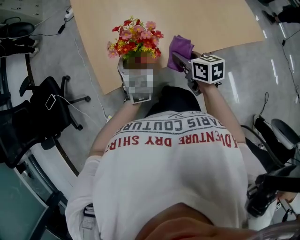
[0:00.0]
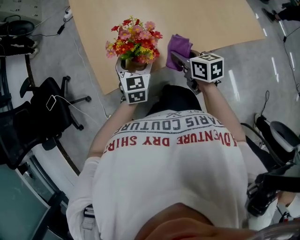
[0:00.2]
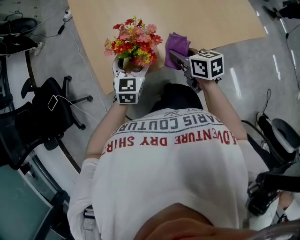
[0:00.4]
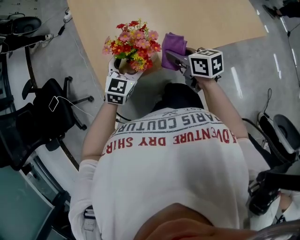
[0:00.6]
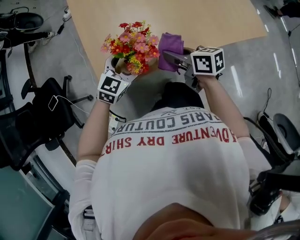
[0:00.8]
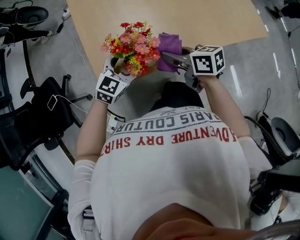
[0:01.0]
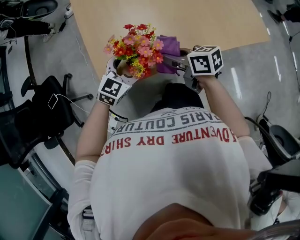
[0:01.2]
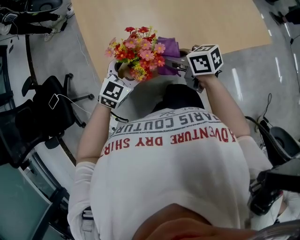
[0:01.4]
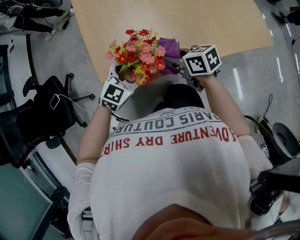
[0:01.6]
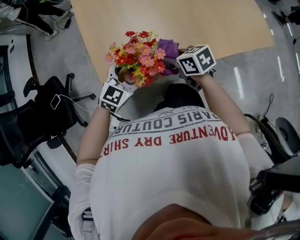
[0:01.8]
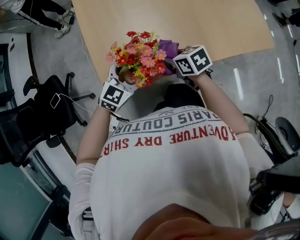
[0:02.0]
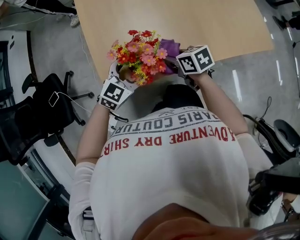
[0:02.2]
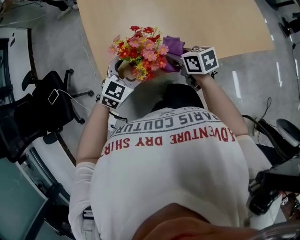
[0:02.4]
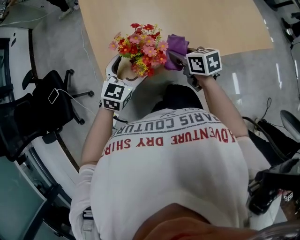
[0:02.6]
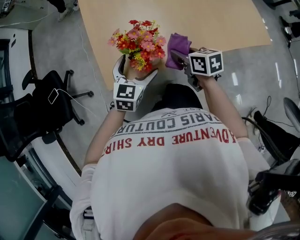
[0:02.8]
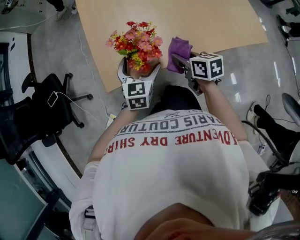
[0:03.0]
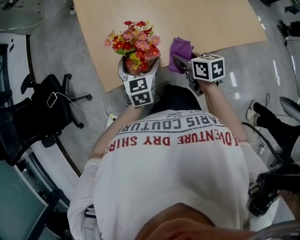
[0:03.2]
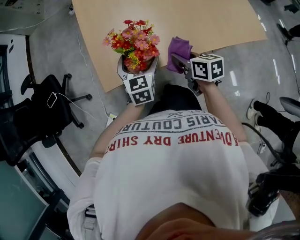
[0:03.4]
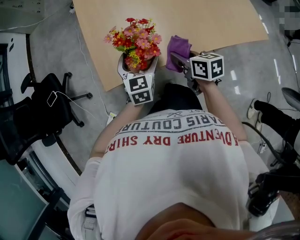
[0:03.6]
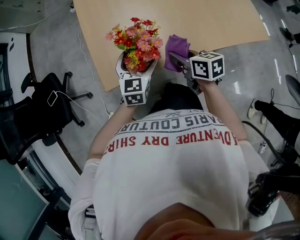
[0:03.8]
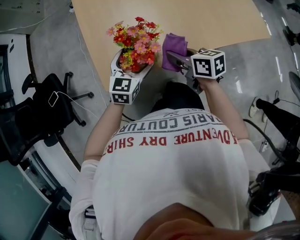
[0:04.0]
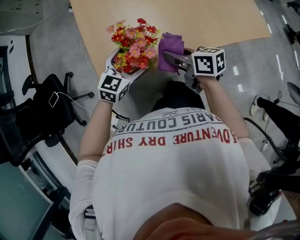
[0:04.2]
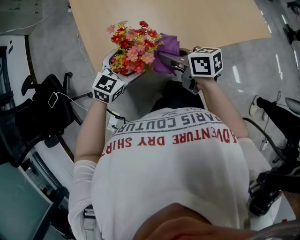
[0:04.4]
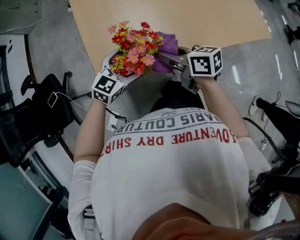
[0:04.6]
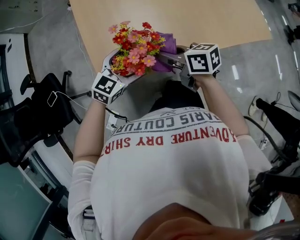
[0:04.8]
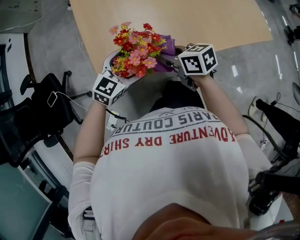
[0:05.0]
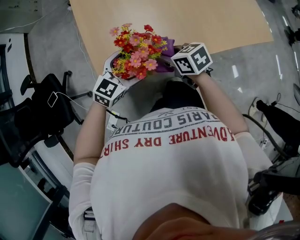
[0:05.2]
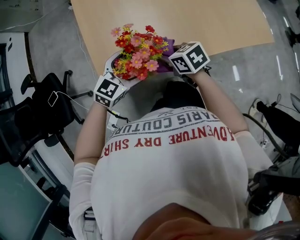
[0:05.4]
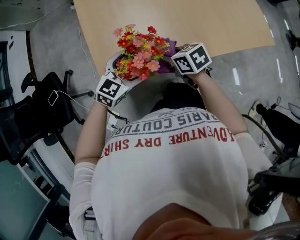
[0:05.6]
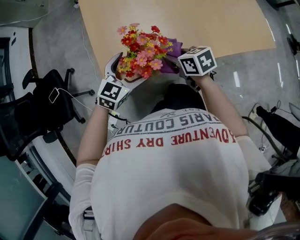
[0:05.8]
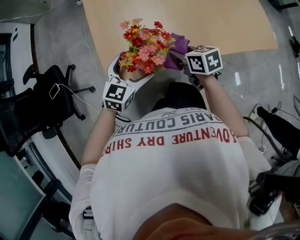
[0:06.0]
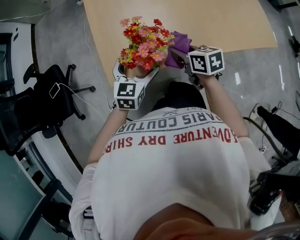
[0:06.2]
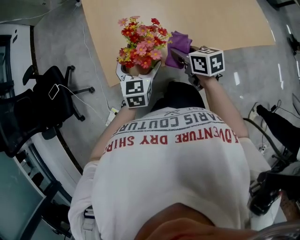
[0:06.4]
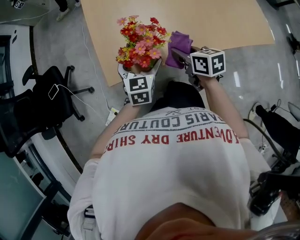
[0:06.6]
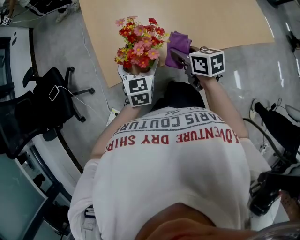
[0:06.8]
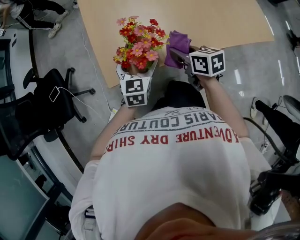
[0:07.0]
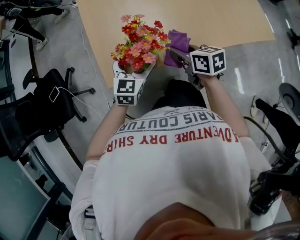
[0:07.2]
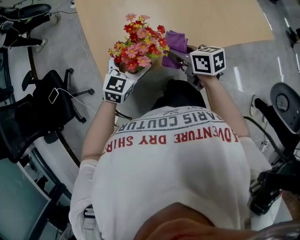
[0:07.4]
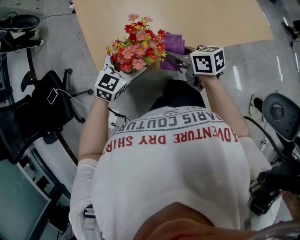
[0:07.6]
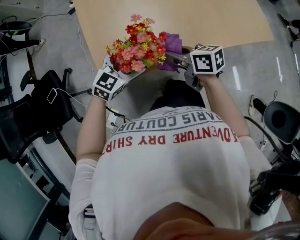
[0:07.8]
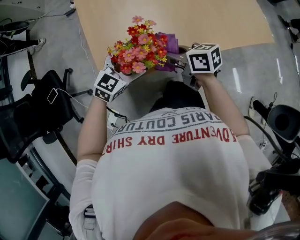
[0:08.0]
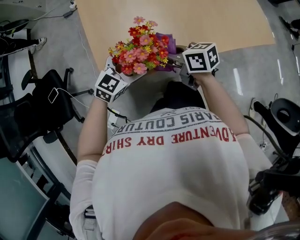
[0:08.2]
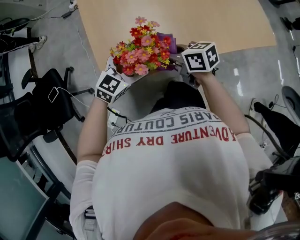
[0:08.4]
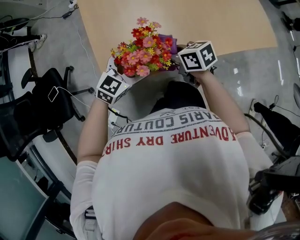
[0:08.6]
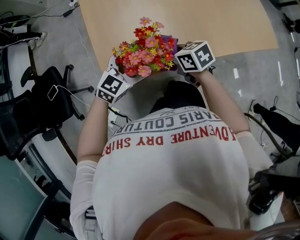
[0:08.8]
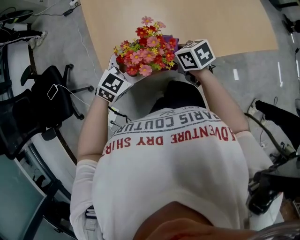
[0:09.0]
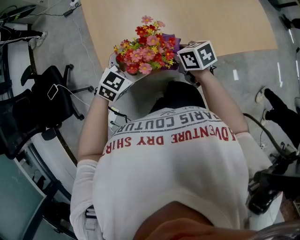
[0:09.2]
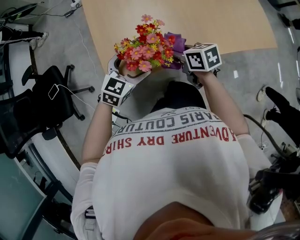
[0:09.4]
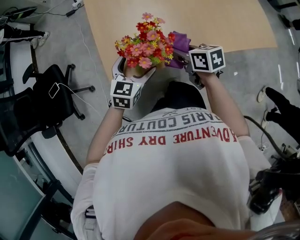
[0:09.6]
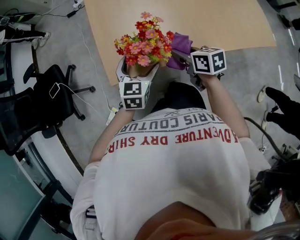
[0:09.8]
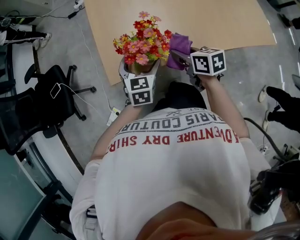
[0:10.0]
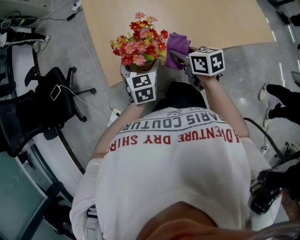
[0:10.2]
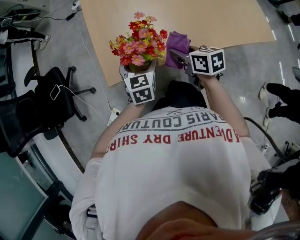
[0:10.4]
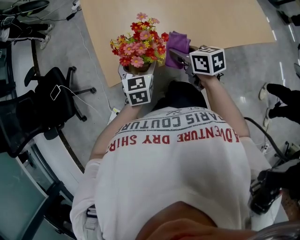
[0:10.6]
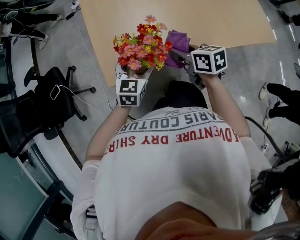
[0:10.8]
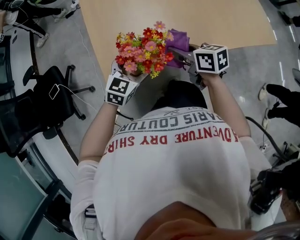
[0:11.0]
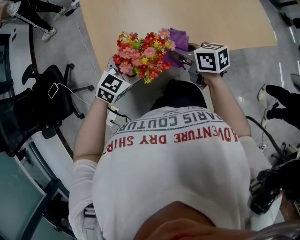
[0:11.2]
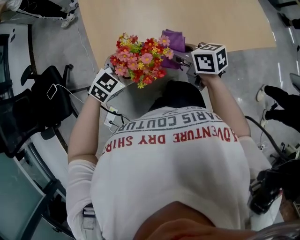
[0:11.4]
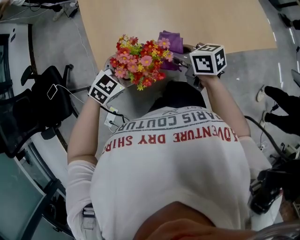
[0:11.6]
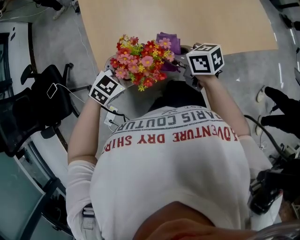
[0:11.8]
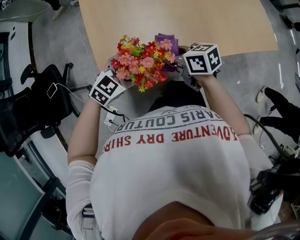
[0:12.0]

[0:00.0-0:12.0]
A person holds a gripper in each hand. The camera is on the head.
0:00.0 to 0:01.6: The left gripper rotates roughly 40 degrees. Meanwhile the right gripper shifts roughly 5 cm to the left, and changes its angle by approximately 20 degrees.
0:01.6 to 0:03.0: The left gripper swivels roughly 40 degrees, while the right gripper moves approximately 5 cm.
0:03.0 to 0:04.4: The left gripper rotates approximately 30 degrees. Meanwhile the right gripper moves to the left, some 5 cm.
0:04.4 to 0:06.0: The right gripper travels downward by roughly 5 cm, and turns by approximately 20 degrees.
0:07.6 to 0:09.0: The right gripper moves approximately 5 cm.
0:09.0 to 0:10.4: The right gripper travels to the right by some 5 cm; the left gripper changes its angle by some 50 degrees.
0:10.4 to 0:12.0: The right gripper shifts by about 5 cm; the left gripper swivels some 50 degrees.

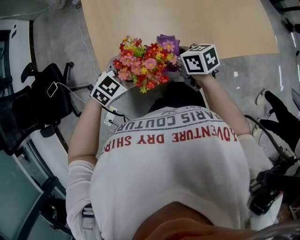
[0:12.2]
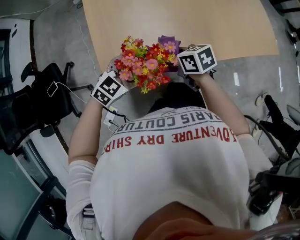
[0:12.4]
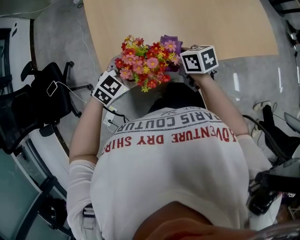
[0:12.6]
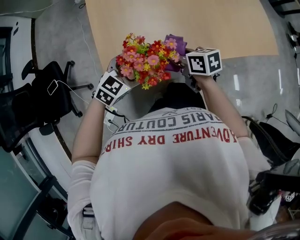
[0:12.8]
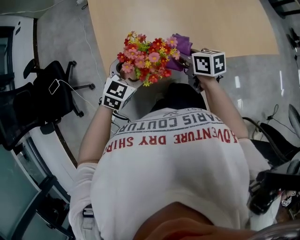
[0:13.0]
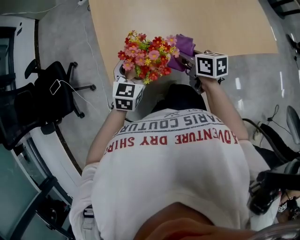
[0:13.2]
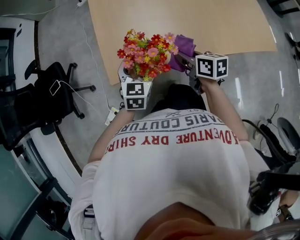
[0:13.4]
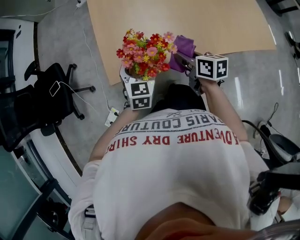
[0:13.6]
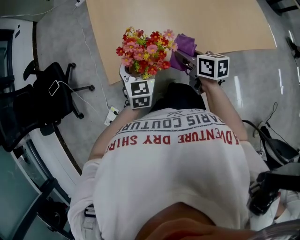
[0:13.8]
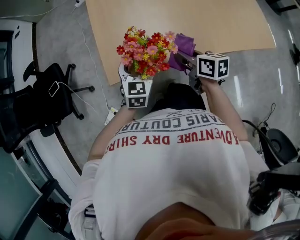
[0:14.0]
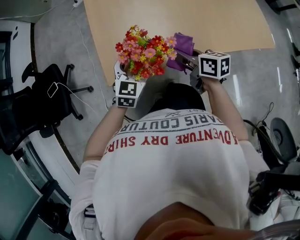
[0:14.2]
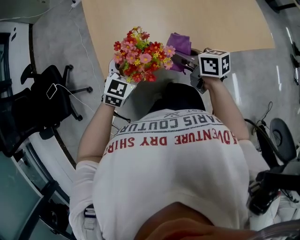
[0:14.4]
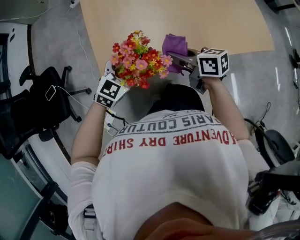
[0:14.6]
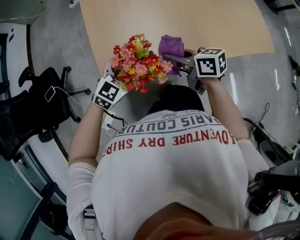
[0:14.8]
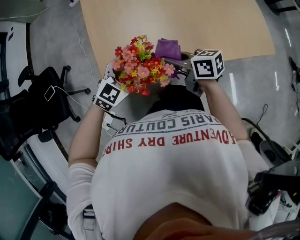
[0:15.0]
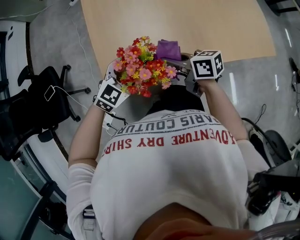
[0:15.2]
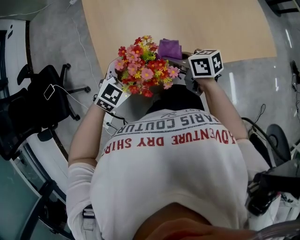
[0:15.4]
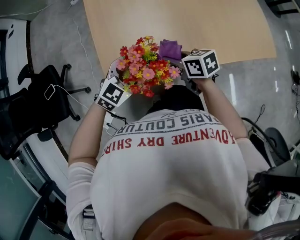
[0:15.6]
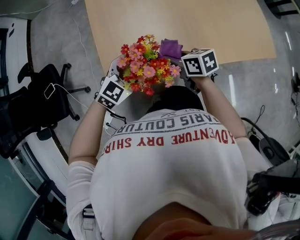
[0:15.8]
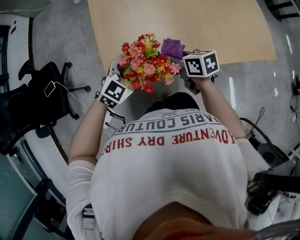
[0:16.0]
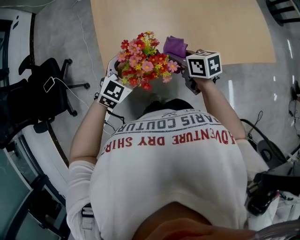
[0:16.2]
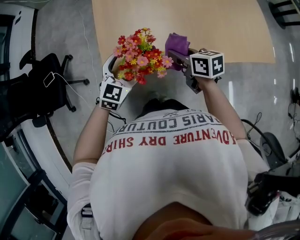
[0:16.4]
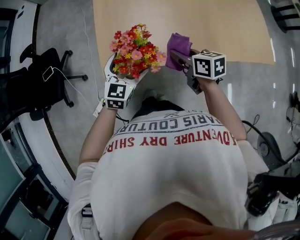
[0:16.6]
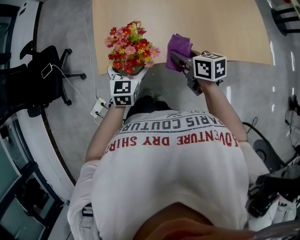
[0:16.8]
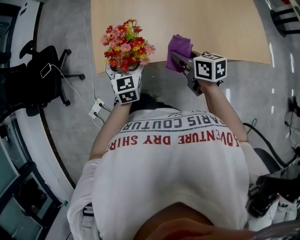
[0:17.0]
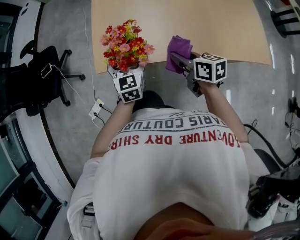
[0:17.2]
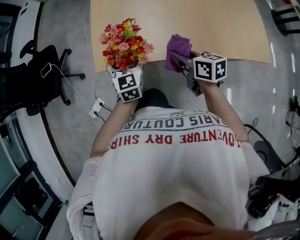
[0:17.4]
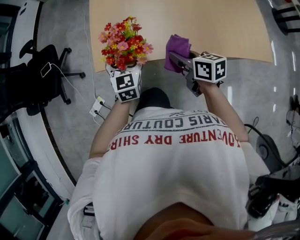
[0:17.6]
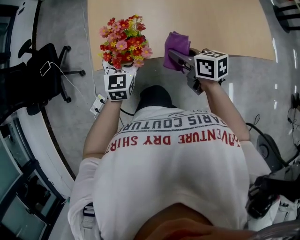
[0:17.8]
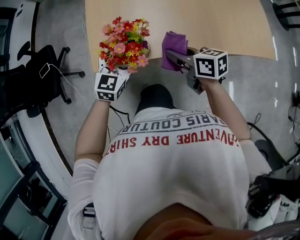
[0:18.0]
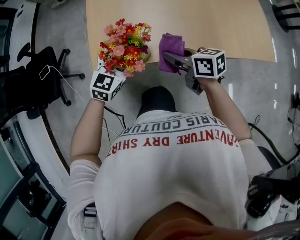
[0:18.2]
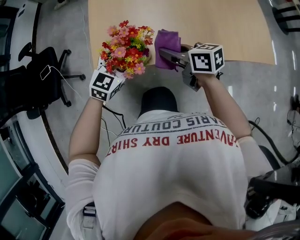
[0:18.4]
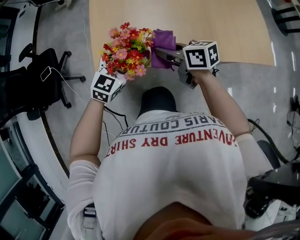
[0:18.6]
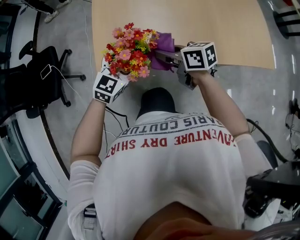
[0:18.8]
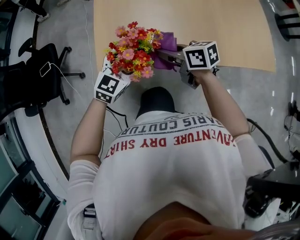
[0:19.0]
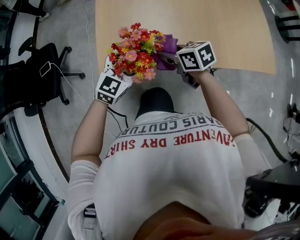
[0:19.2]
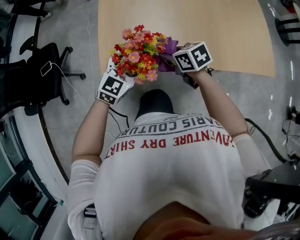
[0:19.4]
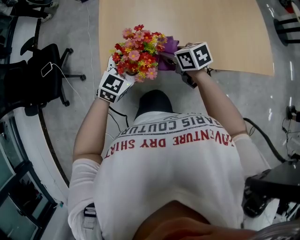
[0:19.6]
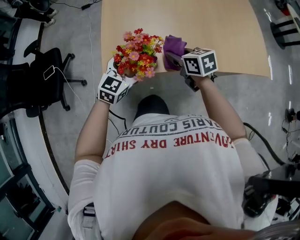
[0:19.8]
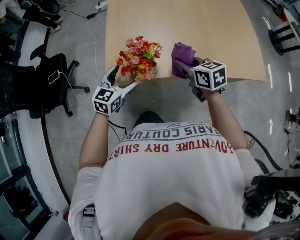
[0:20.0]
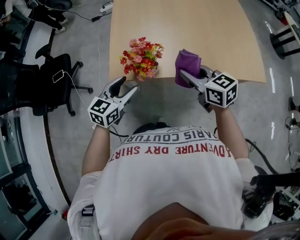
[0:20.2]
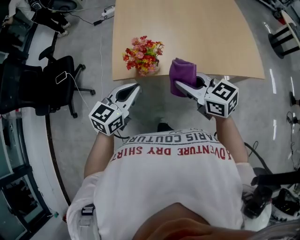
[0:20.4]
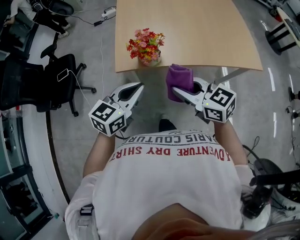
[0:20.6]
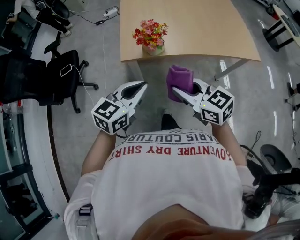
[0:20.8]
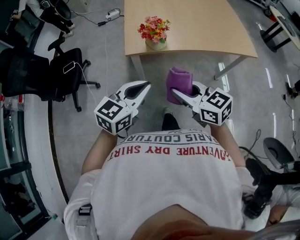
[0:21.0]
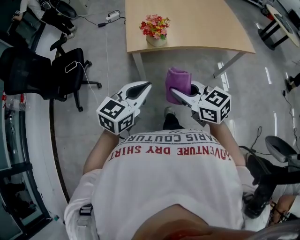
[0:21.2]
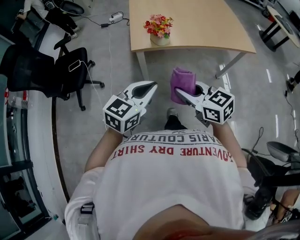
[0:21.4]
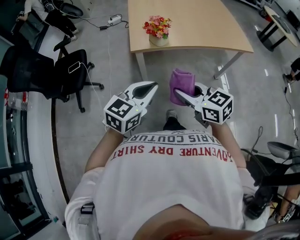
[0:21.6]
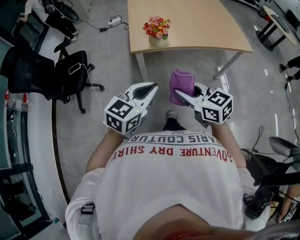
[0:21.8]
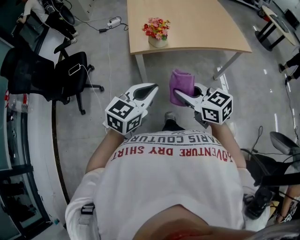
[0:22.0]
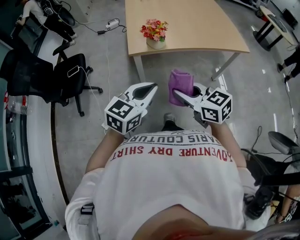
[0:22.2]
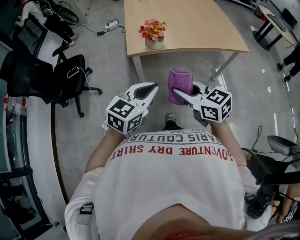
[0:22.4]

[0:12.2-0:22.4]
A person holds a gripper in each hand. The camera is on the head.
0:12.2 to 0:13.6: The right gripper changes place by approximately 5 cm. Meanwhile the left gripper rotates about 50 degrees.
0:13.6 to 0:15.2: The left gripper swivels approximately 40 degrees, while the right gripper moves to the left, about 5 cm.
0:15.2 to 0:16.6: The right gripper is displaced to the right by some 10 cm; the left gripper changes its angle by about 30 degrees.
0:18.0 to 0:19.4: The right gripper heads forward and to the left, covering some 10 cm, and changes its angle by some 20 degrees.
0:19.4 to 0:21.0: The grippers both shift backward and upward by approximately 40 cm. The right gripper turns by roughly 30 degrees. The left gripper closes up.
0:21.0 to 0:22.4: The two grippers go about 10 cm backward.

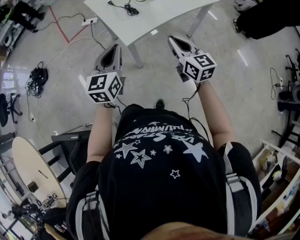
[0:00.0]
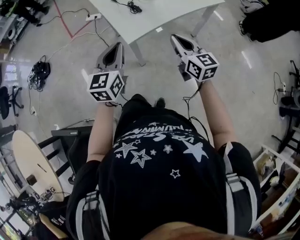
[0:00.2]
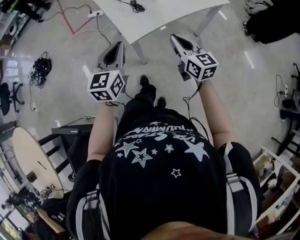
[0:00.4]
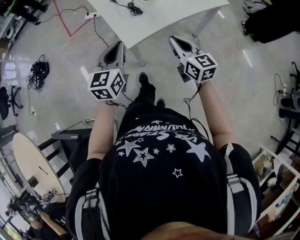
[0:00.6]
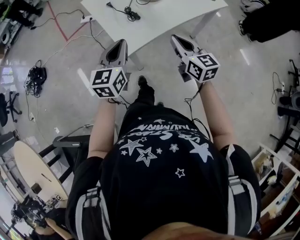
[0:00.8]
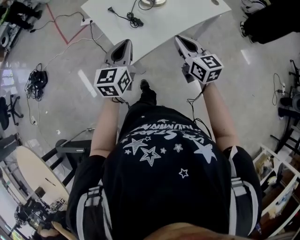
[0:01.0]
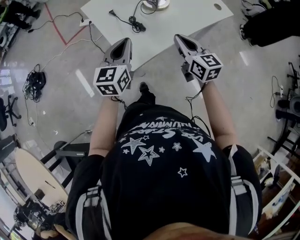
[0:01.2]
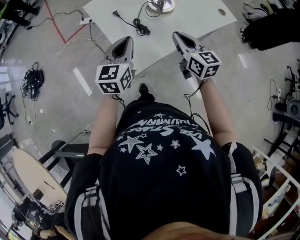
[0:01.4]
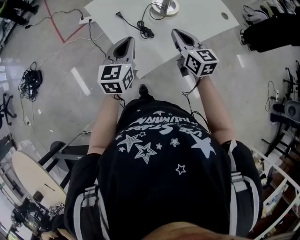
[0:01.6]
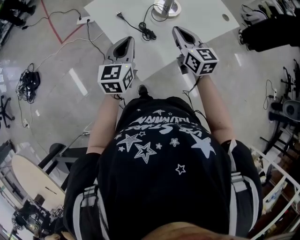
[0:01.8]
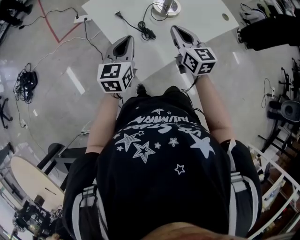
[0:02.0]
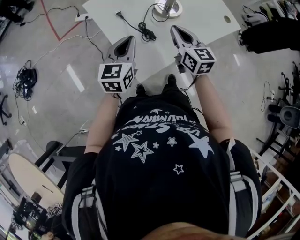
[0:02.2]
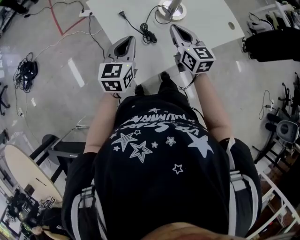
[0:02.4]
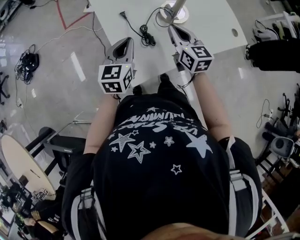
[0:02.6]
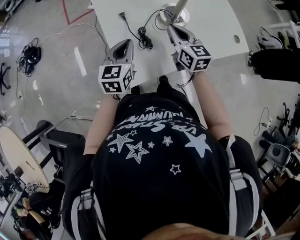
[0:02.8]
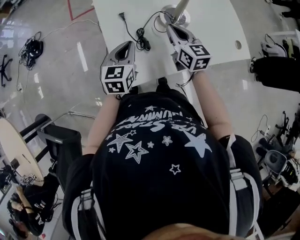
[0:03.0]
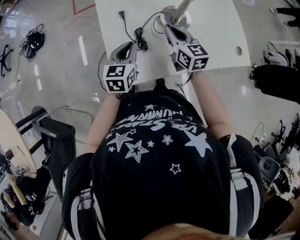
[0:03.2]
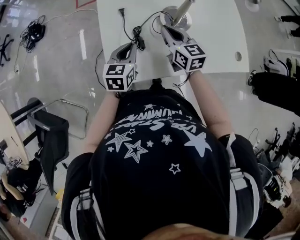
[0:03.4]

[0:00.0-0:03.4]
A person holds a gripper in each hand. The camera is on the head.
0:00.0 to 0:01.6: The grippers both shift forward by some 25 cm.
0:01.6 to 0:03.4: The left gripper goes about 10 cm downward, and rotates approximately 30 degrees; the right gripper moves roughly 15 cm, and rotates about 30 degrees.
